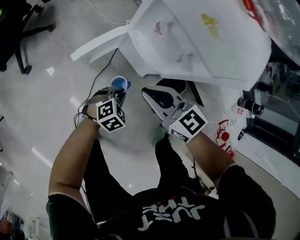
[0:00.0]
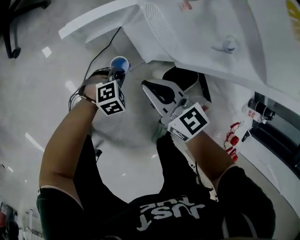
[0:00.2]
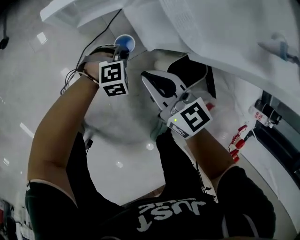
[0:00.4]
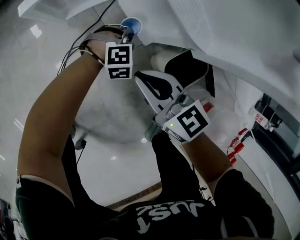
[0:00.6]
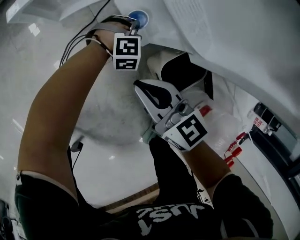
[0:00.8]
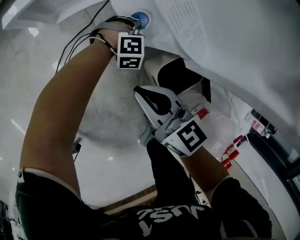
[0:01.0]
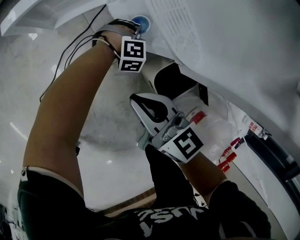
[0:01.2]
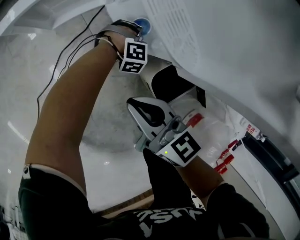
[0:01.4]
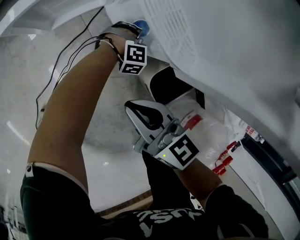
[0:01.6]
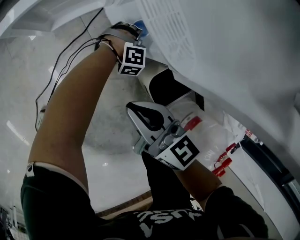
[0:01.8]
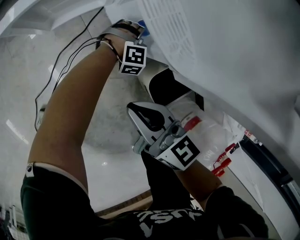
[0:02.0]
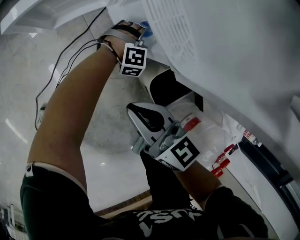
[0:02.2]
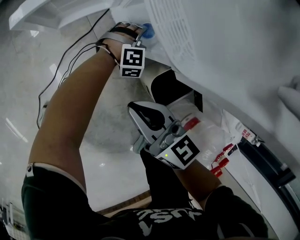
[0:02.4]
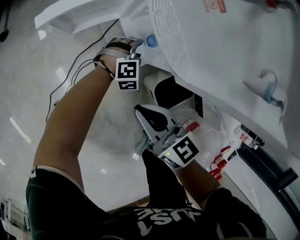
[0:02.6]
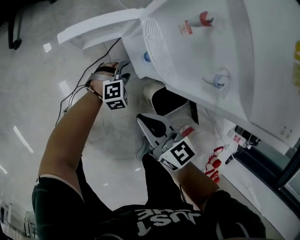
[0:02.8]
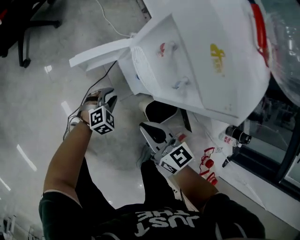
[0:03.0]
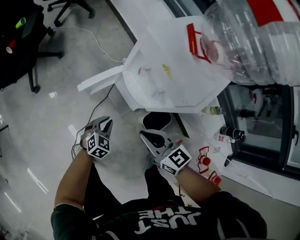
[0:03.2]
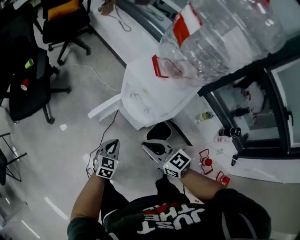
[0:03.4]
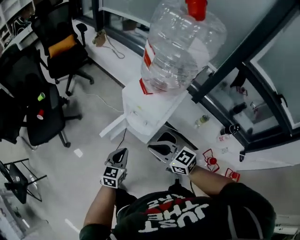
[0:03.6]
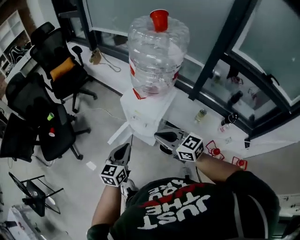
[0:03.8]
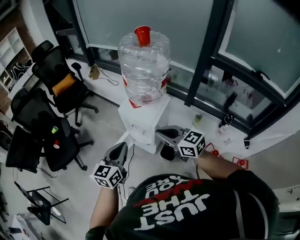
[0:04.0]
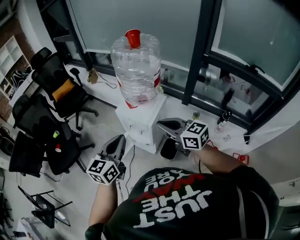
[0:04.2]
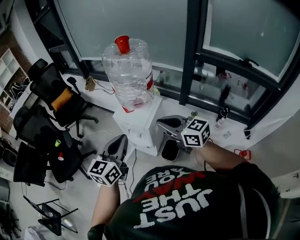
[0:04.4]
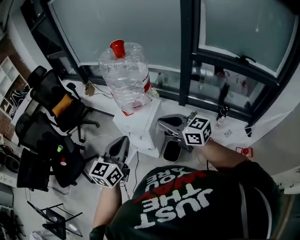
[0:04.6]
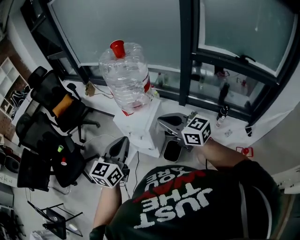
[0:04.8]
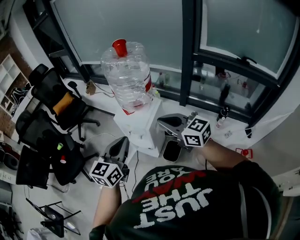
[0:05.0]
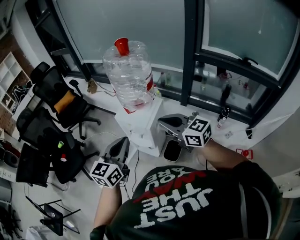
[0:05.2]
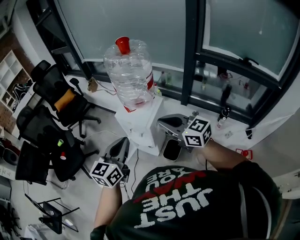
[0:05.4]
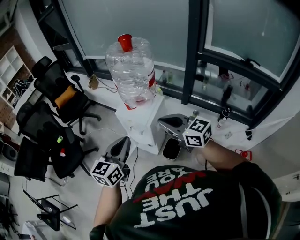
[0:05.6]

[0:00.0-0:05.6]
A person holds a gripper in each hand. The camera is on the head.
0:00.0 to 0:01.4: The right gripper heads downward, covering about 25 cm; the left gripper goes roughly 40 cm downward, to the right and forward, and turns by roughly 30 degrees.
0:01.4 to 0:02.8: The right gripper is displaced upward by roughly 10 cm. The left gripper shifts some 20 cm upward and to the left, rotates roughly 30 degrees, and opens its fingers.
0:02.8 to 0:04.2: The two grippers go about 70 cm upward. The left gripper points its fingers approximately 50 degrees further upward, and closes up. The right gripper changes its angle by about 30 degrees.
0:04.2 to 0:05.6: The left gripper shifts by some 5 cm.

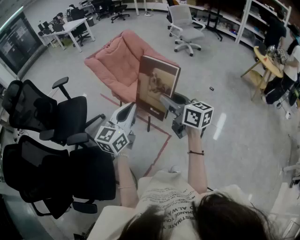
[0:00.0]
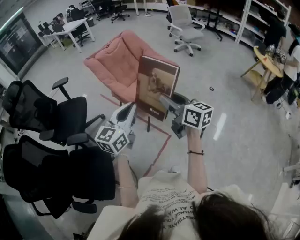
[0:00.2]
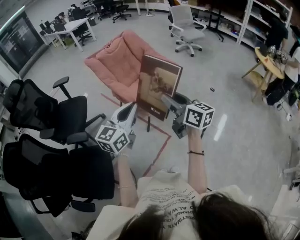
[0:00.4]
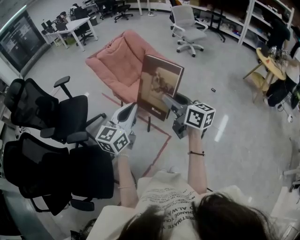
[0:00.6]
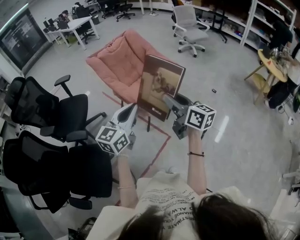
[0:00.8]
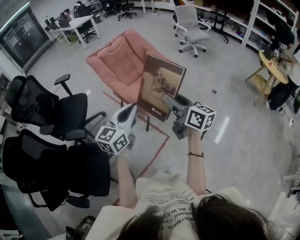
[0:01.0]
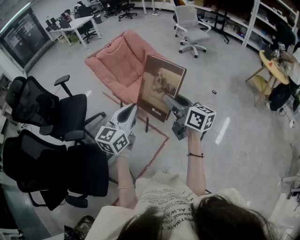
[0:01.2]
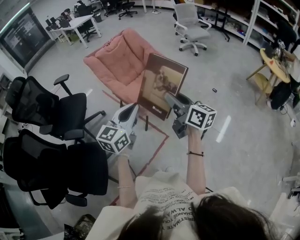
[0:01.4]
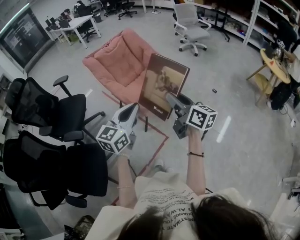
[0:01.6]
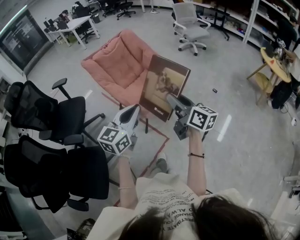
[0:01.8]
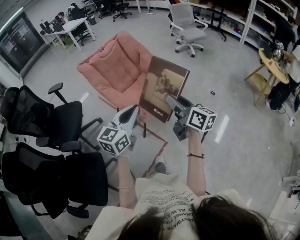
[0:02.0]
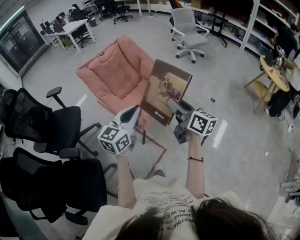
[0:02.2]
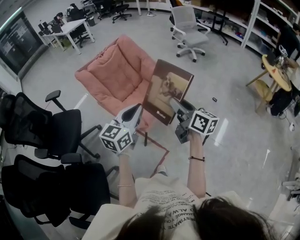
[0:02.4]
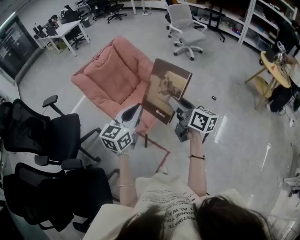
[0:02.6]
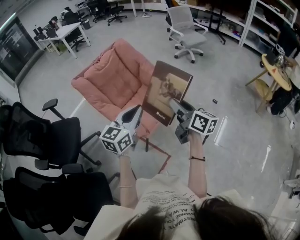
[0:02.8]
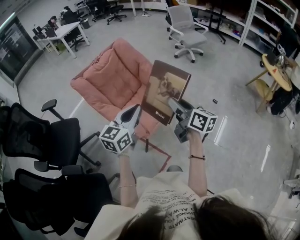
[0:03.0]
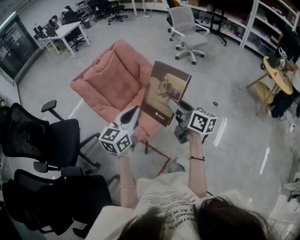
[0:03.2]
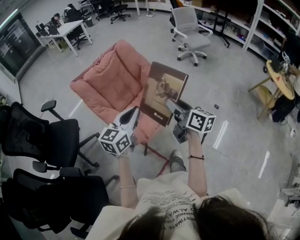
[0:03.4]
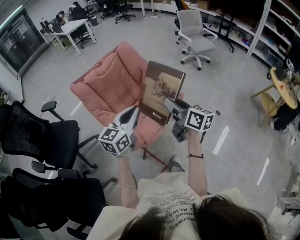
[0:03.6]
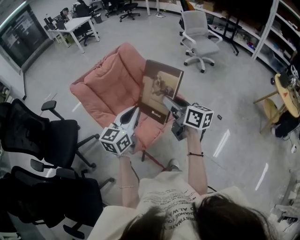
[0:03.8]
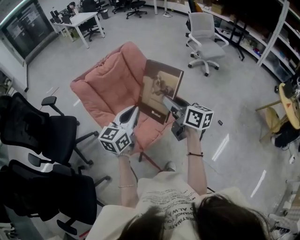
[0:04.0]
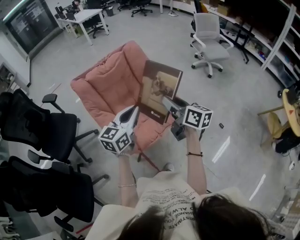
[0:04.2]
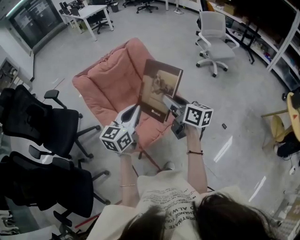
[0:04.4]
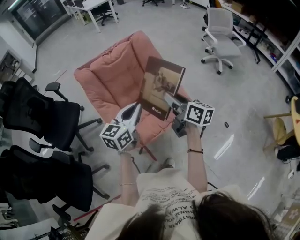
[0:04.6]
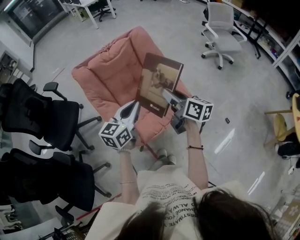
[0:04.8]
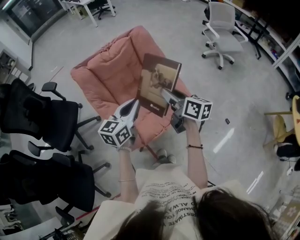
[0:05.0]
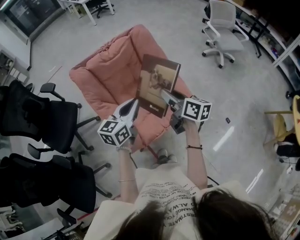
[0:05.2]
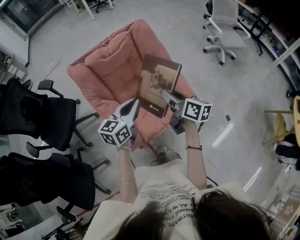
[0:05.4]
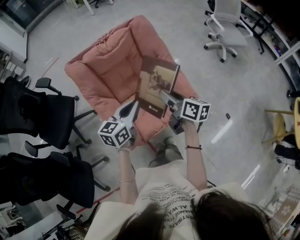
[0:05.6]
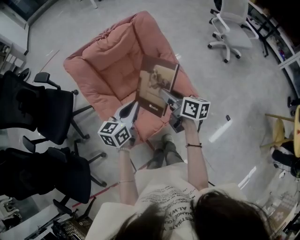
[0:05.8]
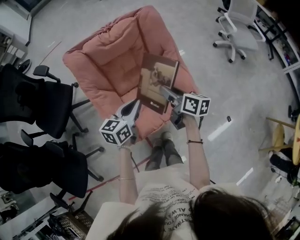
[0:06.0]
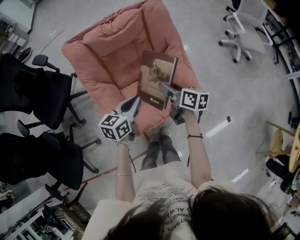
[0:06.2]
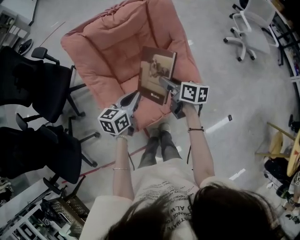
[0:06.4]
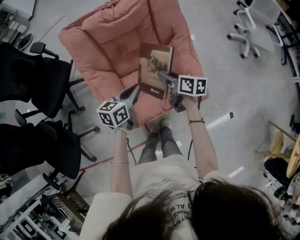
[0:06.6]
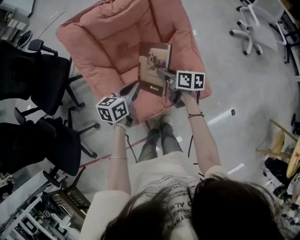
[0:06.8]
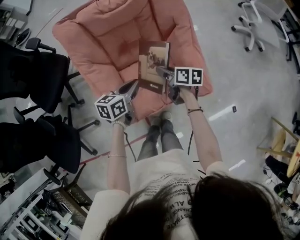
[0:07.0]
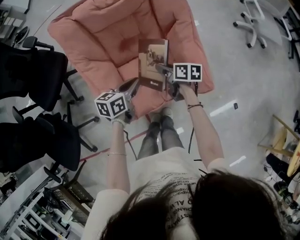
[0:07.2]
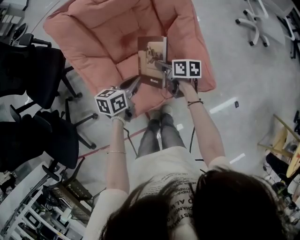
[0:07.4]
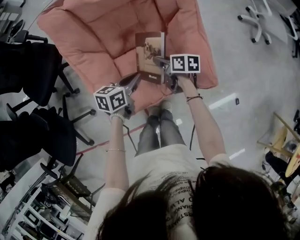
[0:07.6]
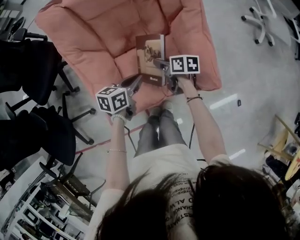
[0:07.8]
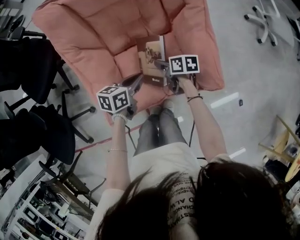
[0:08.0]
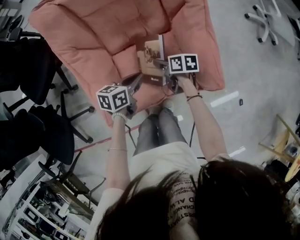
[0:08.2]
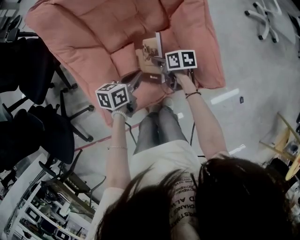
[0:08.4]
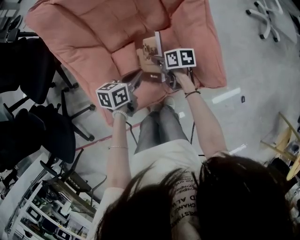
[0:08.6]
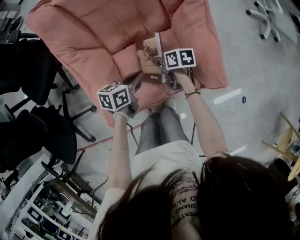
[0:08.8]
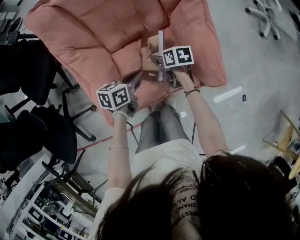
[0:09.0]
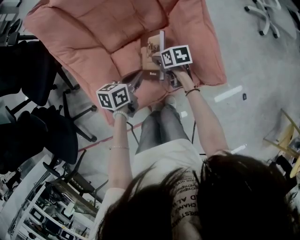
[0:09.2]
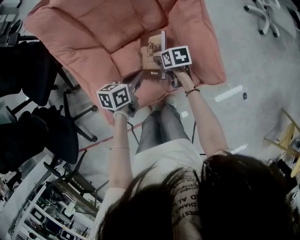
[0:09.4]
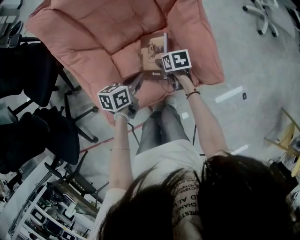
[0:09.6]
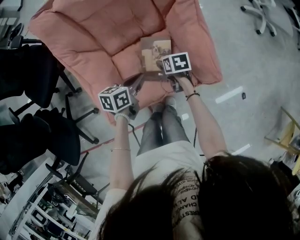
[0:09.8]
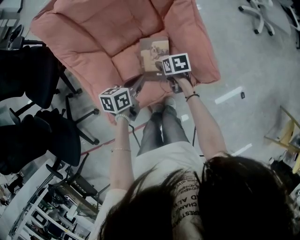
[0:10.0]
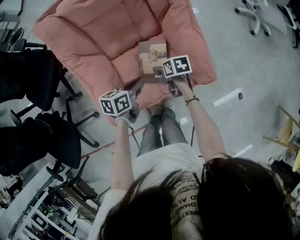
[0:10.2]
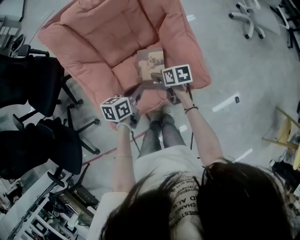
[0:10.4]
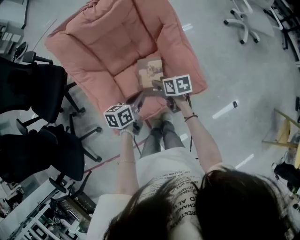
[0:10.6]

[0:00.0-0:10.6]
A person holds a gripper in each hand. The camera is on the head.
0:00.0 to 0:01.6: The two grippers go roughly 10 cm to the right.
0:01.6 to 0:03.0: Both grippers travel together forward, about 25 cm.
0:03.0 to 0:04.6: Both grippers move forward, roughly 25 cm. The right gripper swivels some 20 degrees; the left gripper rotates roughly 20 degrees.
0:04.6 to 0:06.0: Both grippers move forward and downward, about 20 cm.
0:06.0 to 0:07.6: Both grippers travel together downward, about 25 cm. The left gripper rotates approximately 20 degrees; the right gripper rotates about 30 degrees.
0:07.6 to 0:09.0: Both grippers travel together downward, approximately 10 cm.
0:09.0 to 0:10.6: Both grippers move upward and backward, some 15 cm.

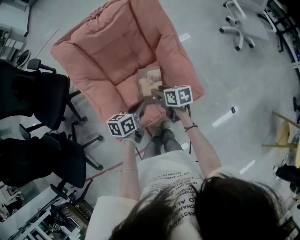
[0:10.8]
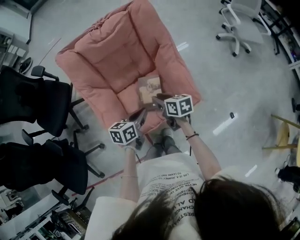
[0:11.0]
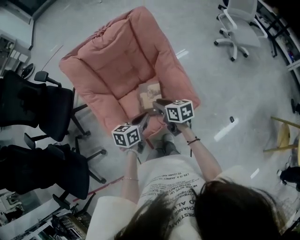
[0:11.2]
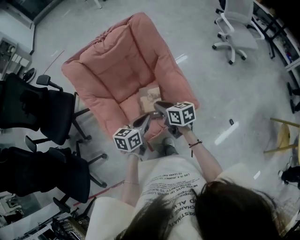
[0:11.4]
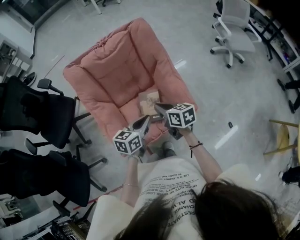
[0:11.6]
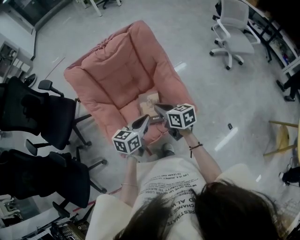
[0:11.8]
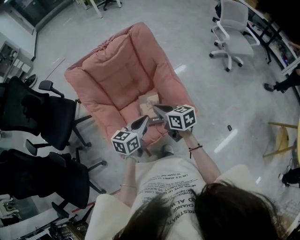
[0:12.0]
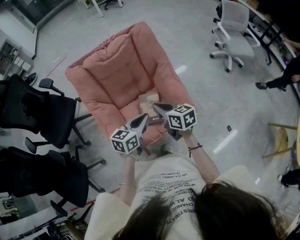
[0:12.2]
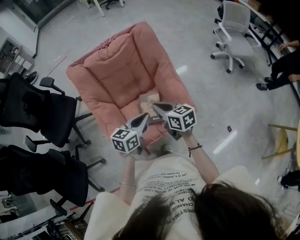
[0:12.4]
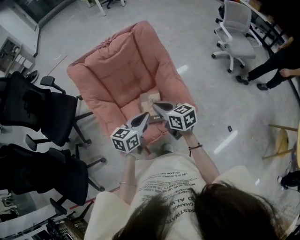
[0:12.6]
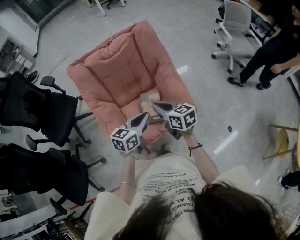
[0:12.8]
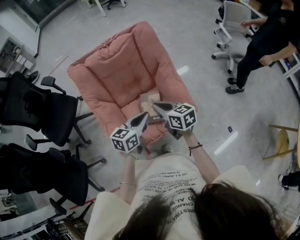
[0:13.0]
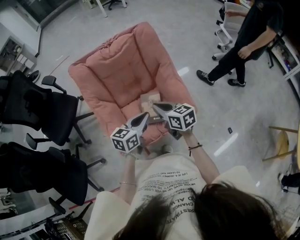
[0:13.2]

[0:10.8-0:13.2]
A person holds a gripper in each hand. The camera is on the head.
0:10.8 to 0:12.0: The two grippers go some 15 cm upward. The left gripper rotates roughly 20 degrees, while the right gripper closes up.
0:12.0 to 0:13.2: The grippers make only small movements.

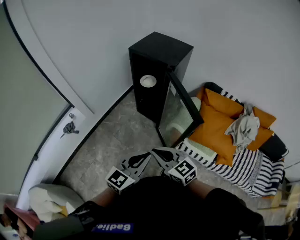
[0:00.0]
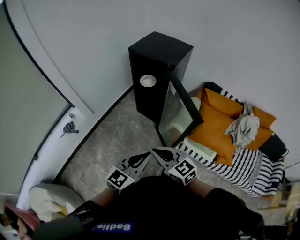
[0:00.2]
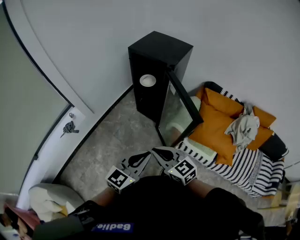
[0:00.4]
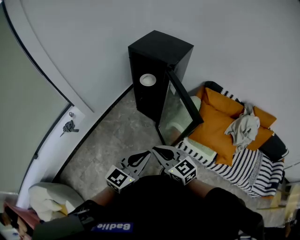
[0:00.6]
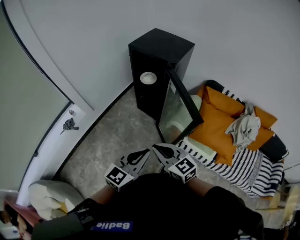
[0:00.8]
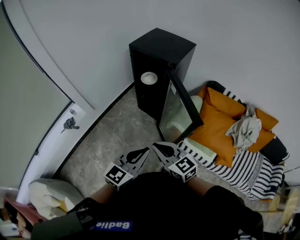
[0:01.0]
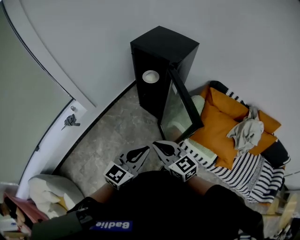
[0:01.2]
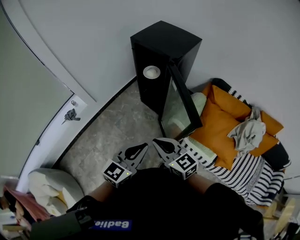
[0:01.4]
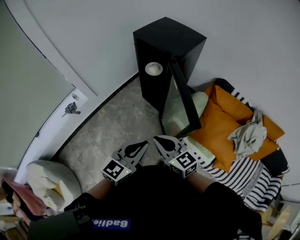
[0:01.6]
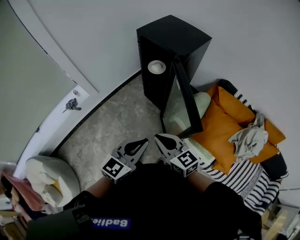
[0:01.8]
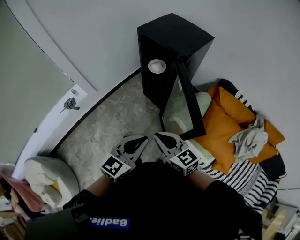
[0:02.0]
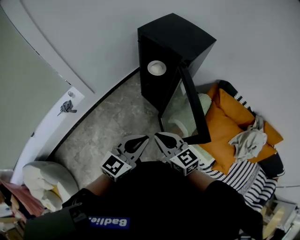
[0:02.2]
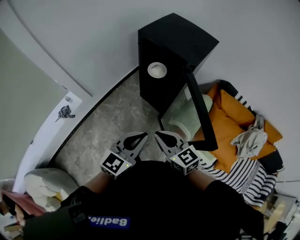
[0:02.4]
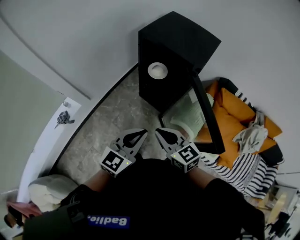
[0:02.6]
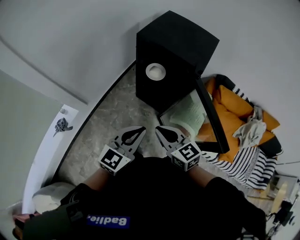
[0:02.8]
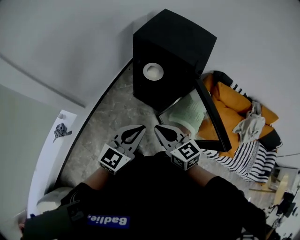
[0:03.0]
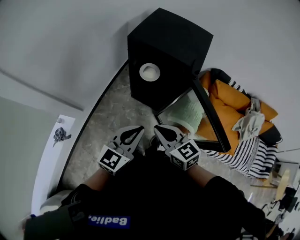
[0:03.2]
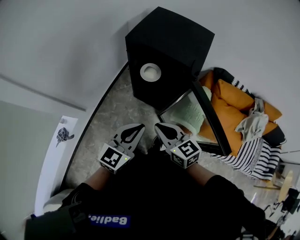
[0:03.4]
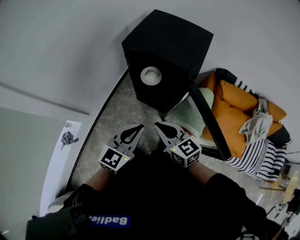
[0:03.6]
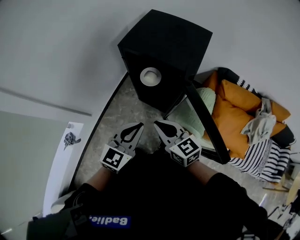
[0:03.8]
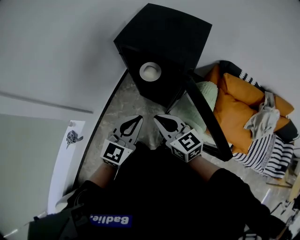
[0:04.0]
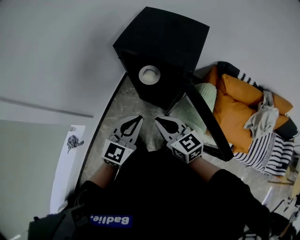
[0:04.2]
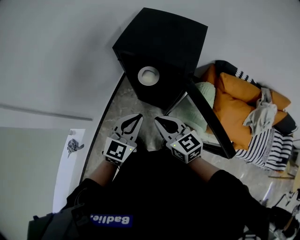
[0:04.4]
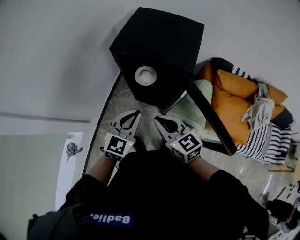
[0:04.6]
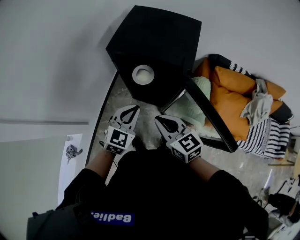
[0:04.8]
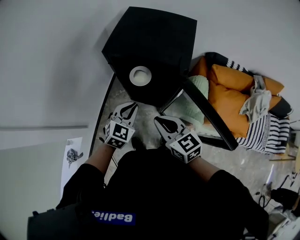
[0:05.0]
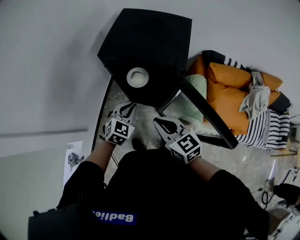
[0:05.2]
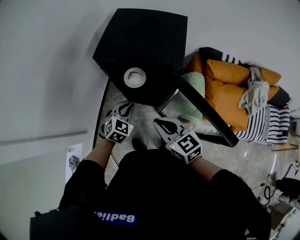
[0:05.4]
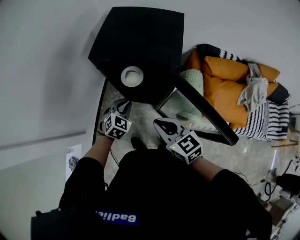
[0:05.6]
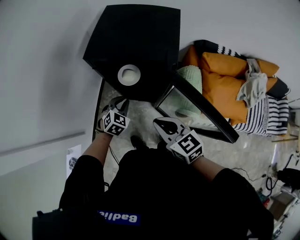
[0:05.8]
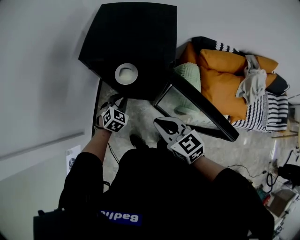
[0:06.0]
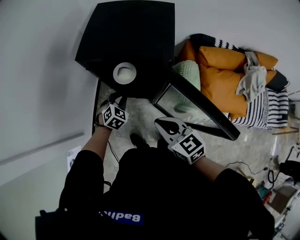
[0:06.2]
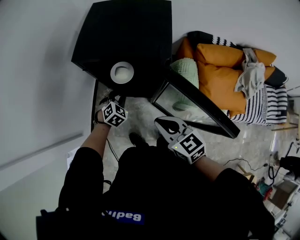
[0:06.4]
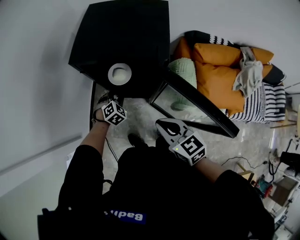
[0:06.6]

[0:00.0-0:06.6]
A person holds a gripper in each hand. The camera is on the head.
0:00.0 to 0:01.6: The left gripper moves forward and to the right, approximately 10 cm. Meanwhile the right gripper is displaced to the right and forward by about 10 cm.
0:01.6 to 0:03.2: Both grippers travel together forward and to the left, roughly 30 cm. The right gripper rotates roughly 20 degrees.
0:03.2 to 0:05.0: The right gripper travels forward by about 10 cm. The left gripper goes about 20 cm forward and downward, and rotates roughly 30 degrees.
0:05.0 to 0:06.6: The right gripper changes place by some 5 cm; the left gripper heads downward and forward, covering about 20 cm, and changes its angle by roughly 30 degrees.
